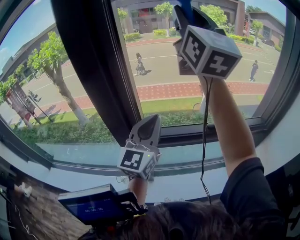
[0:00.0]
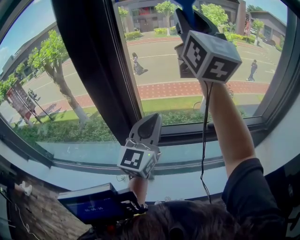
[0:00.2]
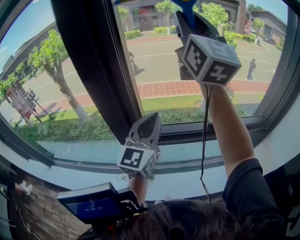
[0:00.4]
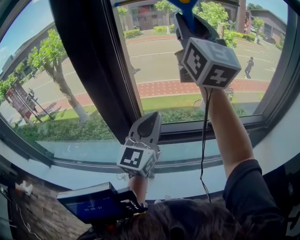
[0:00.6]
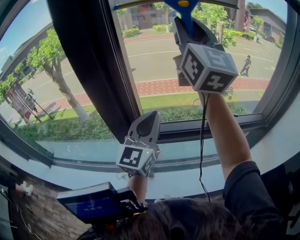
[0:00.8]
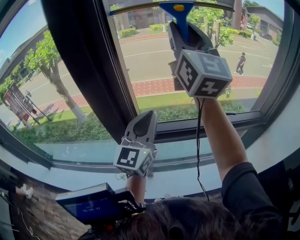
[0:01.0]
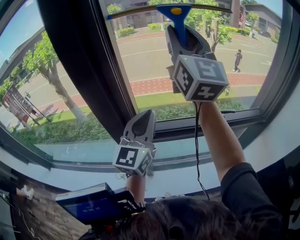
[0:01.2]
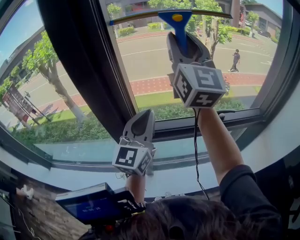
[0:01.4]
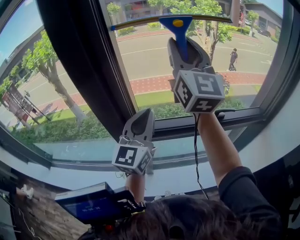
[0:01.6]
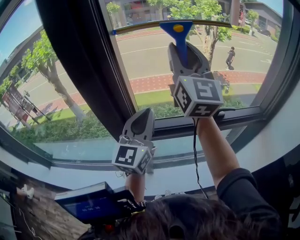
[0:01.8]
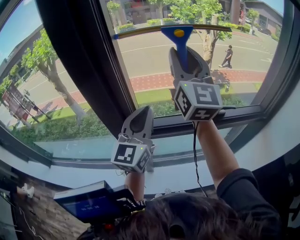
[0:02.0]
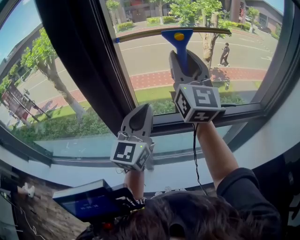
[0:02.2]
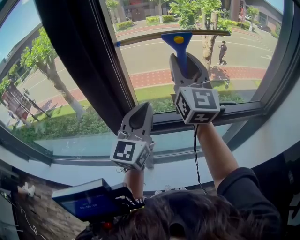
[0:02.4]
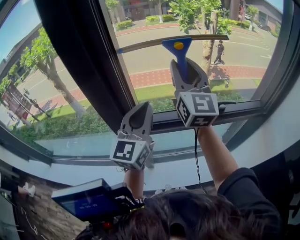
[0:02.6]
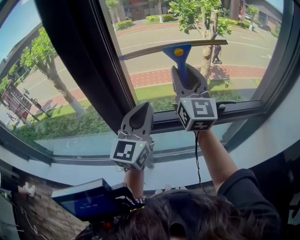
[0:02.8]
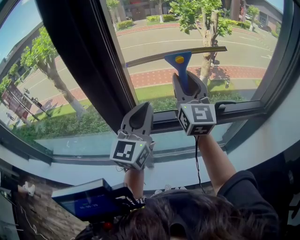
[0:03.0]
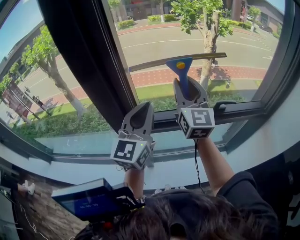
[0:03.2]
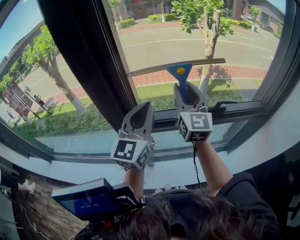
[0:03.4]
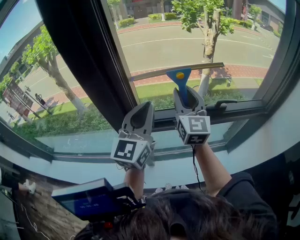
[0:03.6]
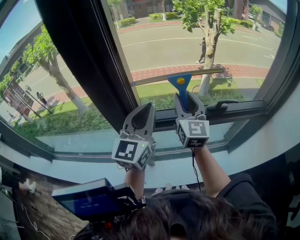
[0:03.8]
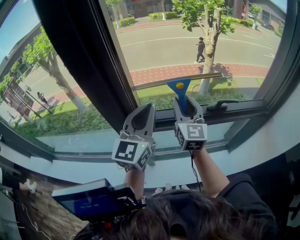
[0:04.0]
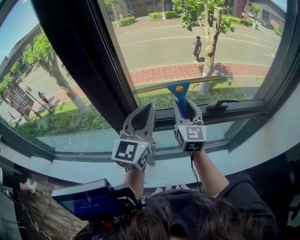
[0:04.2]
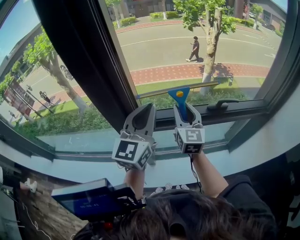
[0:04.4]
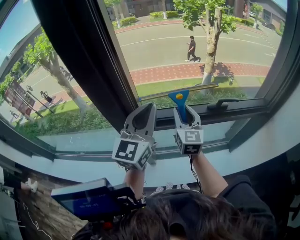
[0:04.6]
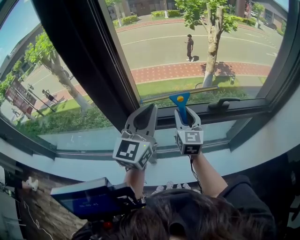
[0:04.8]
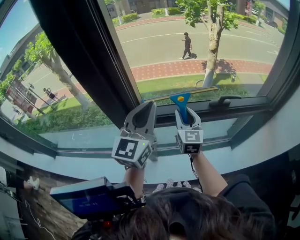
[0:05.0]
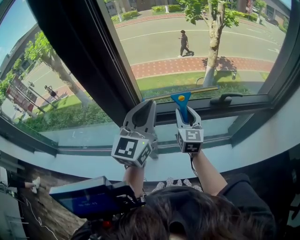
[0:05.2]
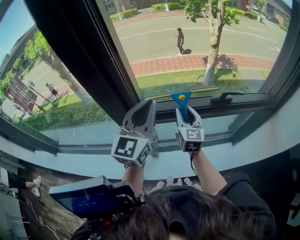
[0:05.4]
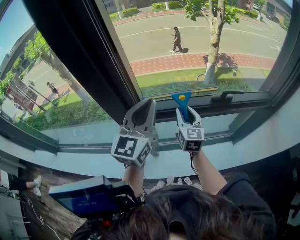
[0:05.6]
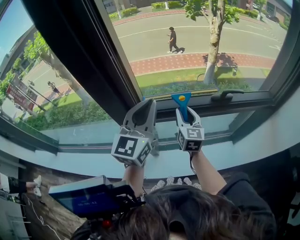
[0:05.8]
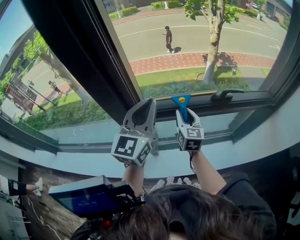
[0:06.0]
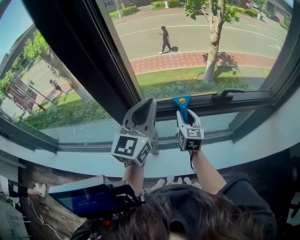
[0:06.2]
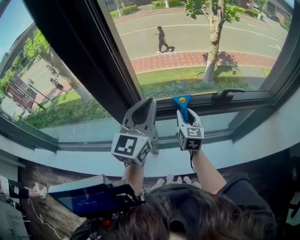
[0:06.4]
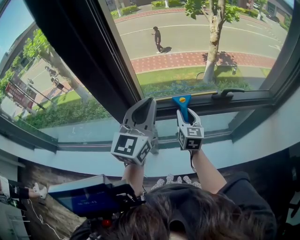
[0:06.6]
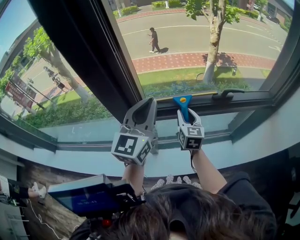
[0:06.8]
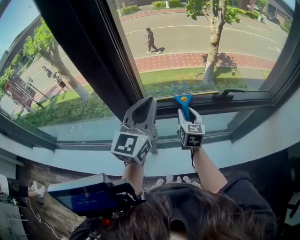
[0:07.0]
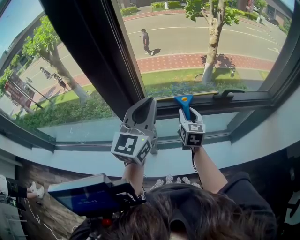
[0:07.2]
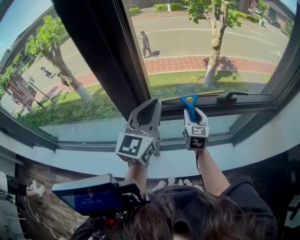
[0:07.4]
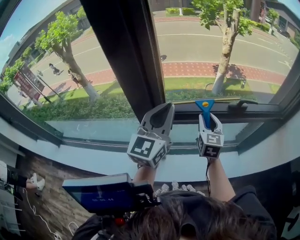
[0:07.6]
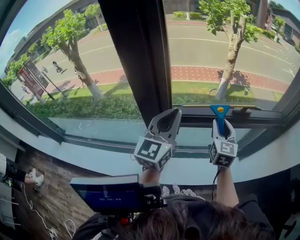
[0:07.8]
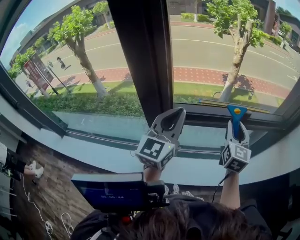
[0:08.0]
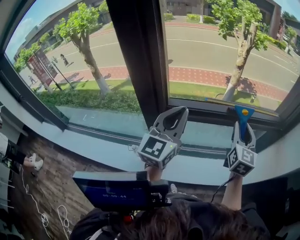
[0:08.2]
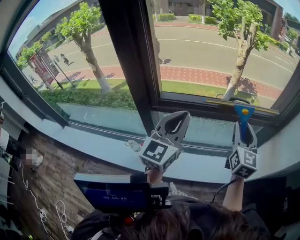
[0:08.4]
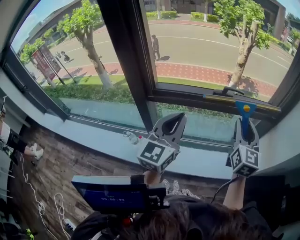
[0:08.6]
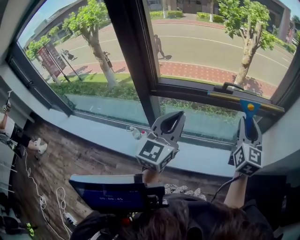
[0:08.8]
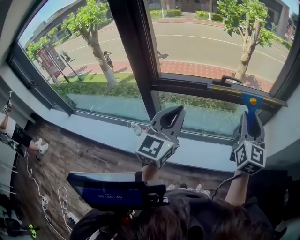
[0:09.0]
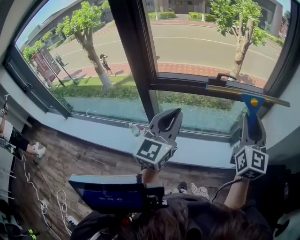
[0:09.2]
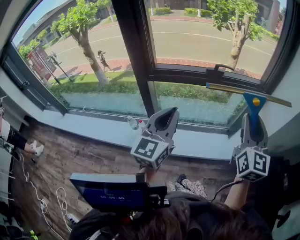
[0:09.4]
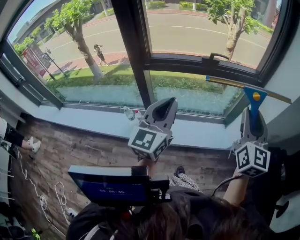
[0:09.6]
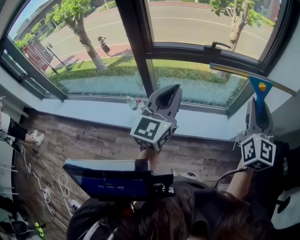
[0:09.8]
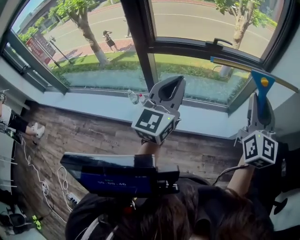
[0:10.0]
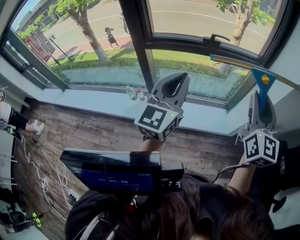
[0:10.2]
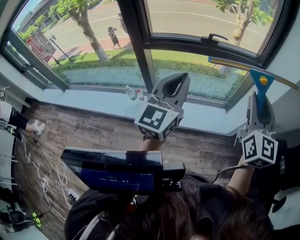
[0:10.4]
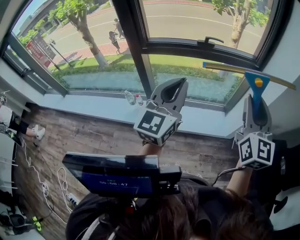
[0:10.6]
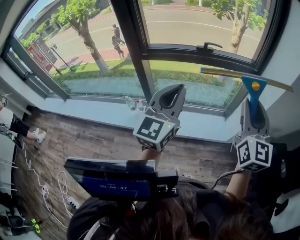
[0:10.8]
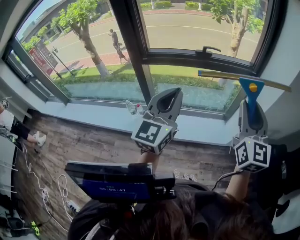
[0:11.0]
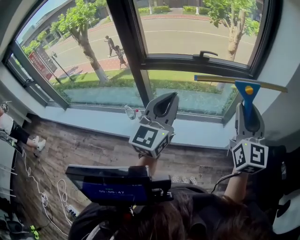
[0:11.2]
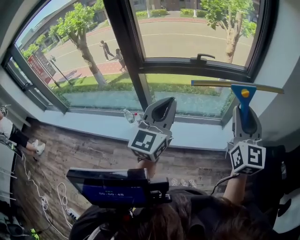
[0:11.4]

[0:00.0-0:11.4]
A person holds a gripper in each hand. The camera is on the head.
0:00.0 to 0:01.4: The right gripper shifts approximately 10 cm downward.
0:01.4 to 0:02.8: The right gripper travels downward by roughly 15 cm.
0:02.8 to 0:04.2: The right gripper moves downward, roughly 15 cm.
0:04.2 to 0:05.6: The right gripper moves downward, some 10 cm.
0:05.6 to 0:07.2: The grippers move only a little.
0:07.2 to 0:08.6: The right gripper shifts about 35 cm to the right, backward and upward, while the left gripper goes approximately 20 cm to the right and backward.
0:08.6 to 0:10.0: The two grippers go about 25 cm backward.
0:10.0 to 0:11.4: The left gripper goes roughly 5 cm to the right.

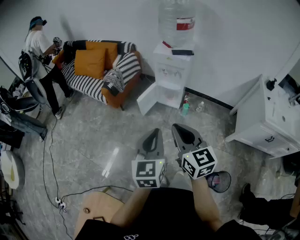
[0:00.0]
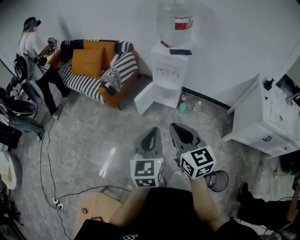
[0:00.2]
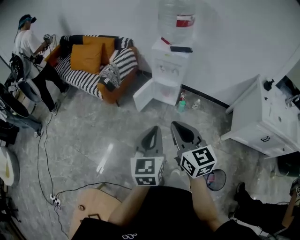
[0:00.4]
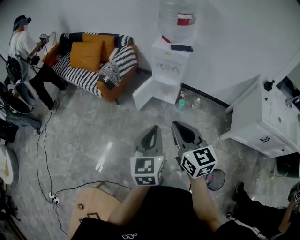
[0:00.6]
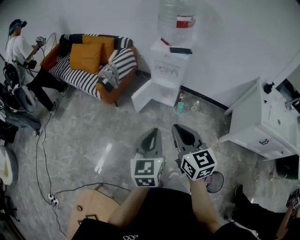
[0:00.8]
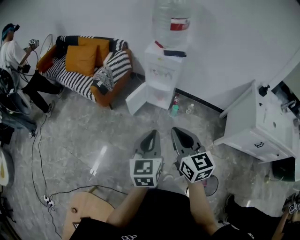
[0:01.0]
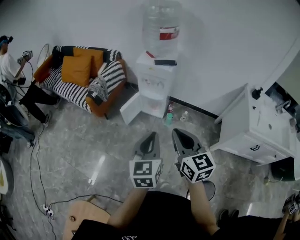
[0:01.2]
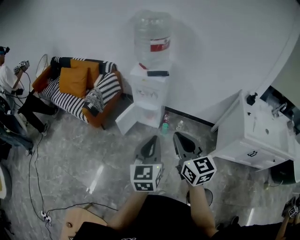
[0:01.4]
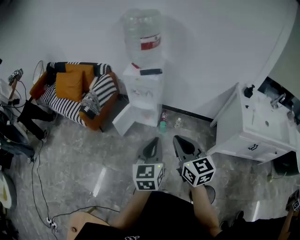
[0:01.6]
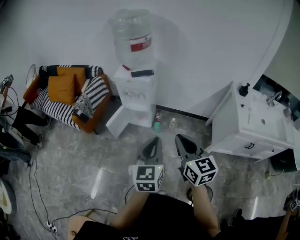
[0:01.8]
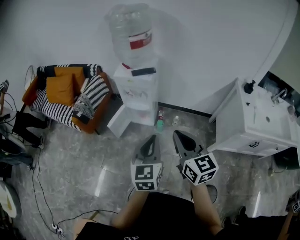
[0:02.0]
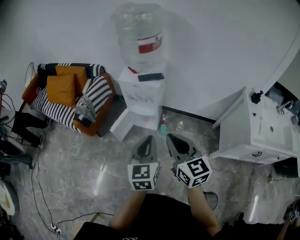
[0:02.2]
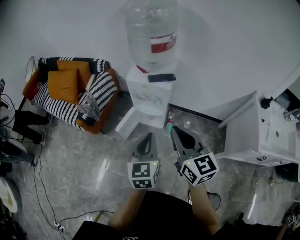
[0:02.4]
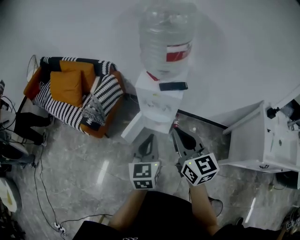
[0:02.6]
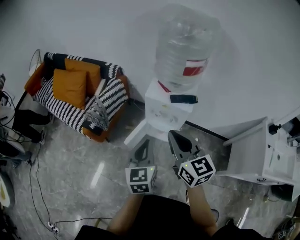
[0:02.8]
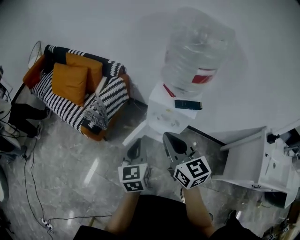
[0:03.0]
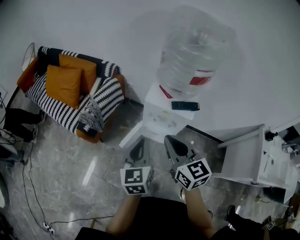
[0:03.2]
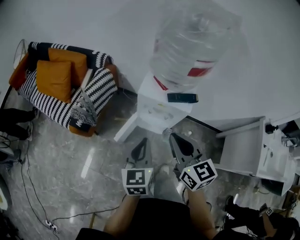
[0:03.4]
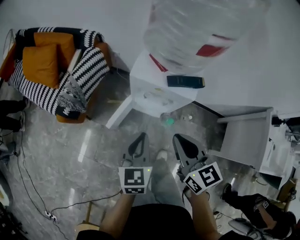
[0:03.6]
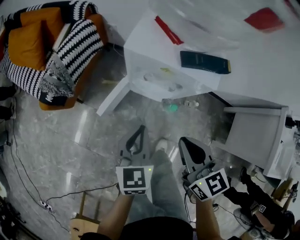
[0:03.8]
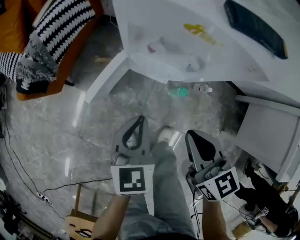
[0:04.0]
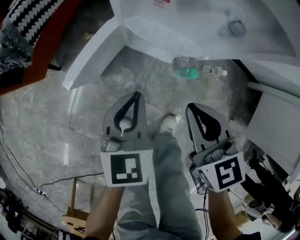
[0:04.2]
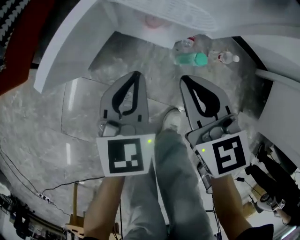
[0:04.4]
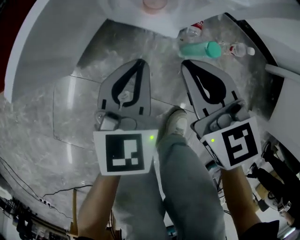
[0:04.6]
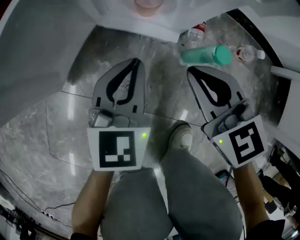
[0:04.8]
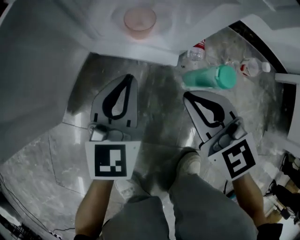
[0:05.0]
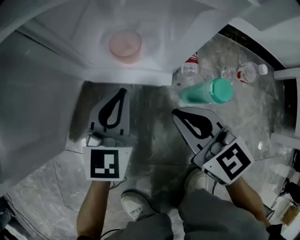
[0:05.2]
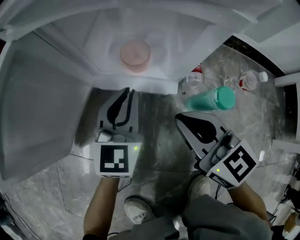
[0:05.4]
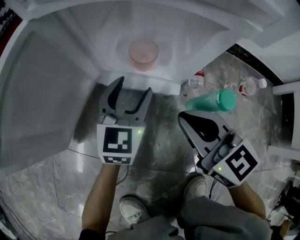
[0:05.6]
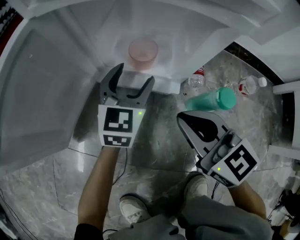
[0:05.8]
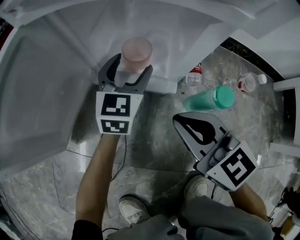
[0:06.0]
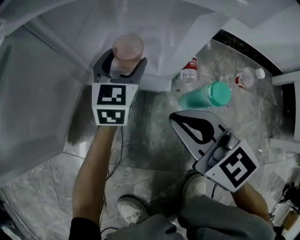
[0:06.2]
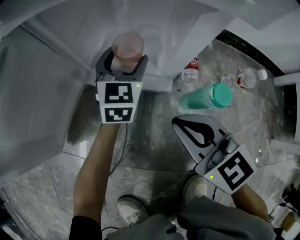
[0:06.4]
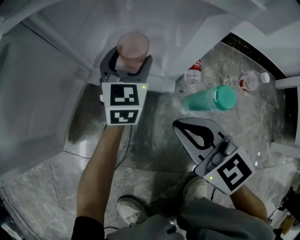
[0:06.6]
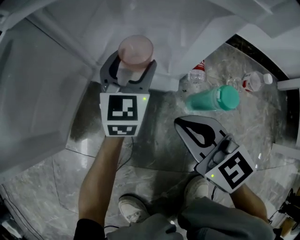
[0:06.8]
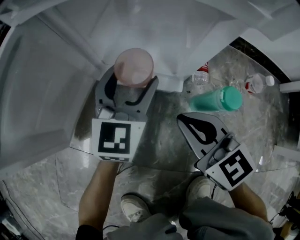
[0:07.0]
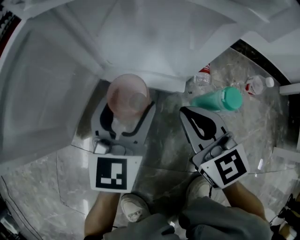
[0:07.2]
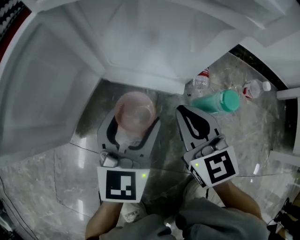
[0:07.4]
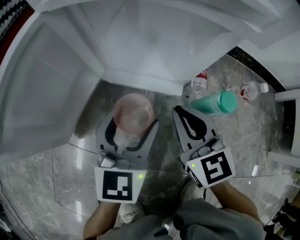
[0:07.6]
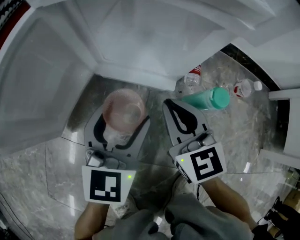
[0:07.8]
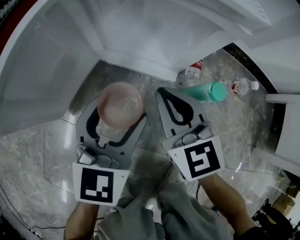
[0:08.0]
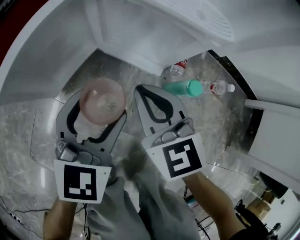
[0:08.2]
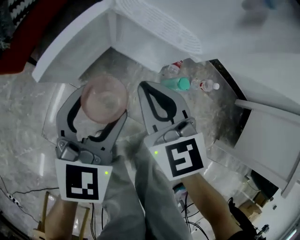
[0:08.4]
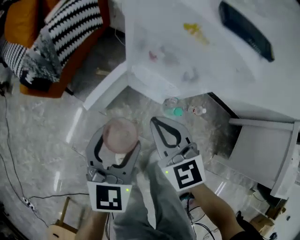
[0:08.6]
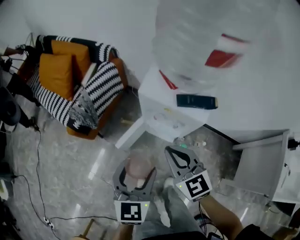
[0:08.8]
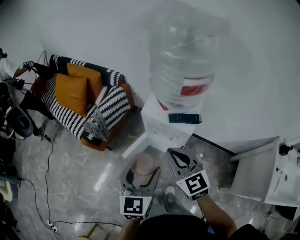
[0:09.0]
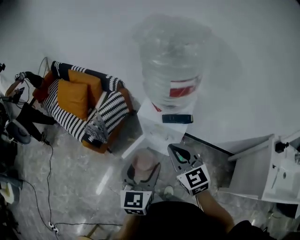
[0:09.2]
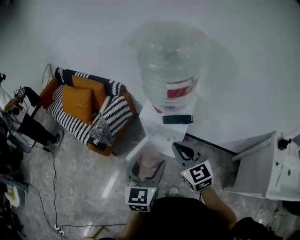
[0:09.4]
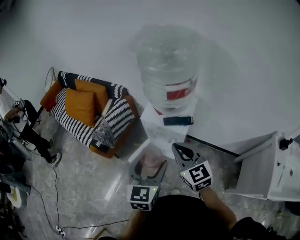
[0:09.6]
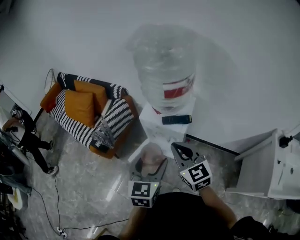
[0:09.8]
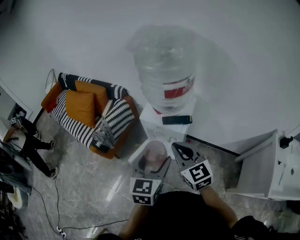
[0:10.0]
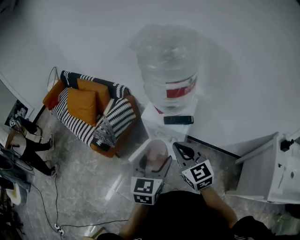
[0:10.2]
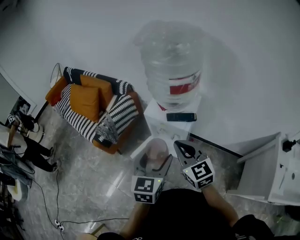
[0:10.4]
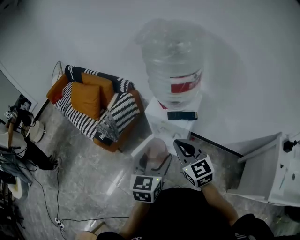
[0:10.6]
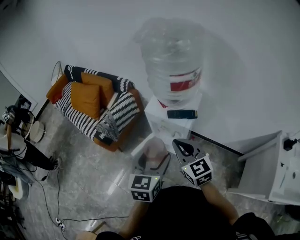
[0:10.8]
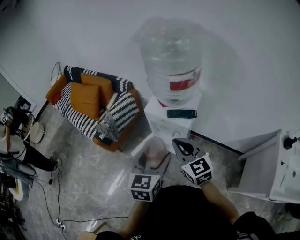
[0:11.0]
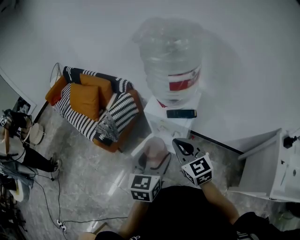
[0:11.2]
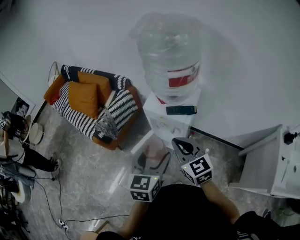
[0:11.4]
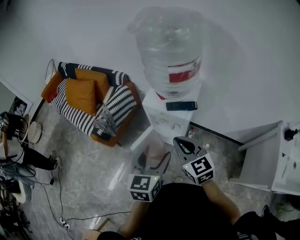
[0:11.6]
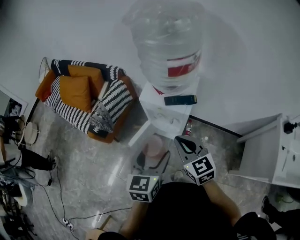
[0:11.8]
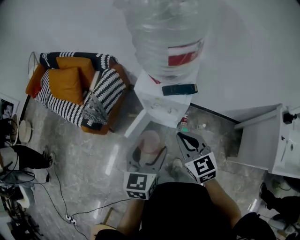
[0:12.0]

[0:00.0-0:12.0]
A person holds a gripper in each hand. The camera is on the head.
0:00.0 to 0:01.6: Both grippers move to the right, roughly 20 cm.
0:01.6 to 0:03.0: Both grippers are carried forward and to the left, some 40 cm.
0:03.0 to 0:04.4: Both grippers travel together downward, some 60 cm. The right gripper rotates roughly 20 degrees.
0:04.4 to 0:06.0: The right gripper moves downward, approximately 25 cm; the left gripper moves downward and forward, some 30 cm, swivels some 20 degrees, and opens.
0:06.0 to 0:07.6: The left gripper shifts some 15 cm backward.
0:07.6 to 0:09.0: The two grippers go roughly 80 cm upward.
0:09.0 to 0:10.4: The grippers both shift to the right by some 5 cm.
0:10.4 to 0:12.0: Both grippers travel together downward, roughly 5 cm.

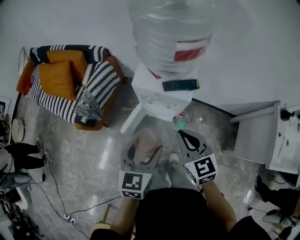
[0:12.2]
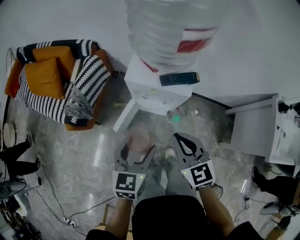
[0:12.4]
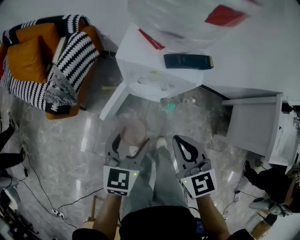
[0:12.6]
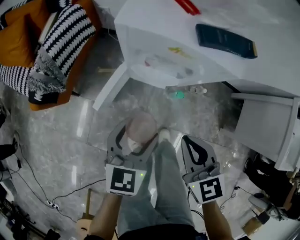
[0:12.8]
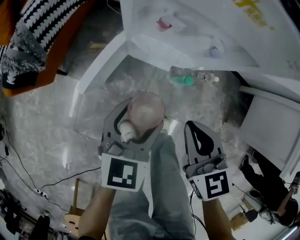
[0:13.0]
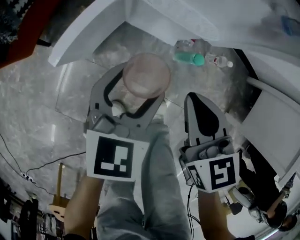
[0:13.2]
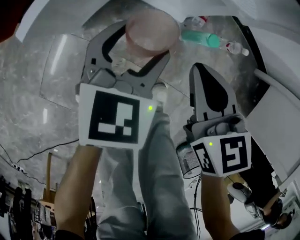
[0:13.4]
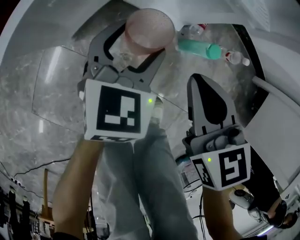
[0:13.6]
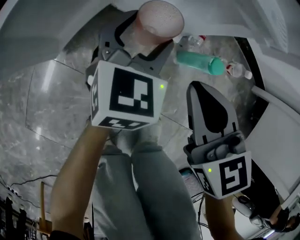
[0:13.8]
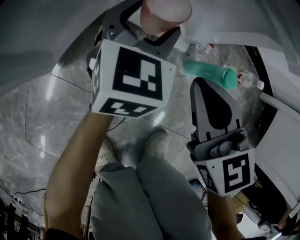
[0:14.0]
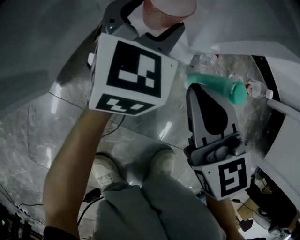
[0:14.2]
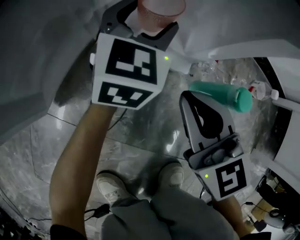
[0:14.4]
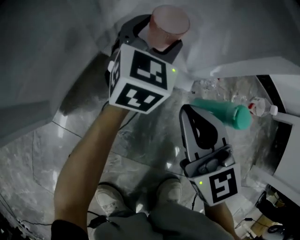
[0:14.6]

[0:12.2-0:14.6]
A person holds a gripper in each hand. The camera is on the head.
0:12.2 to 0:13.4: Both grippers move downward, some 50 cm.
0:13.4 to 0:14.6: The right gripper moves downward and forward, about 25 cm, and changes its angle by about 20 degrees. The left gripper heads forward and downward, covering roughly 30 cm, and rotates roughly 20 degrees.
